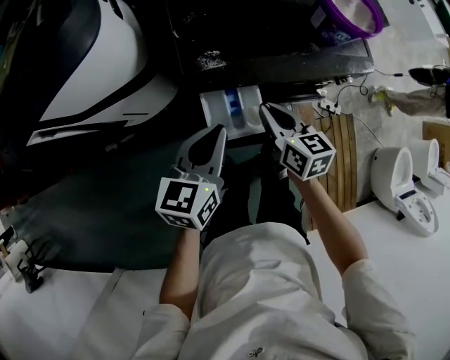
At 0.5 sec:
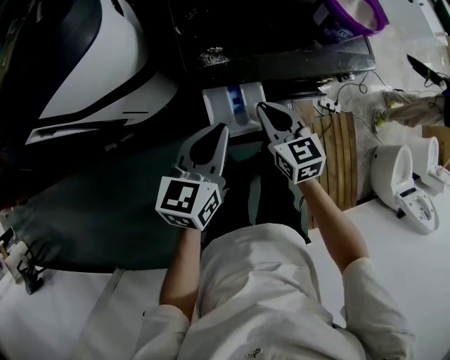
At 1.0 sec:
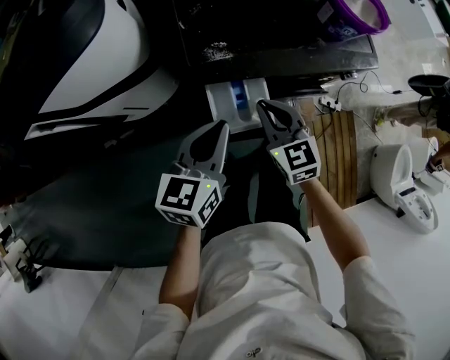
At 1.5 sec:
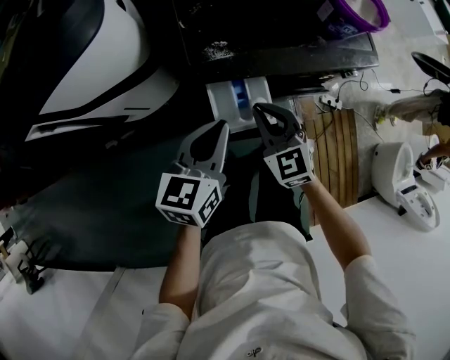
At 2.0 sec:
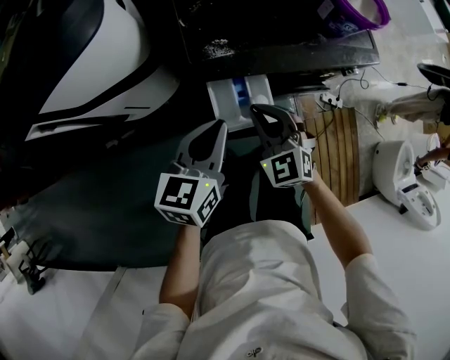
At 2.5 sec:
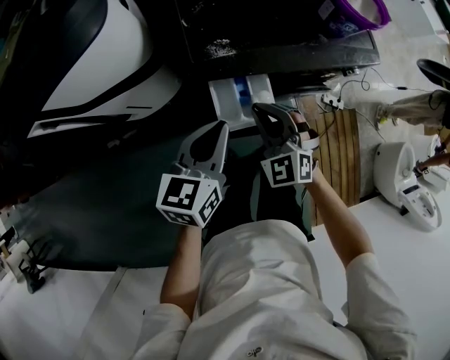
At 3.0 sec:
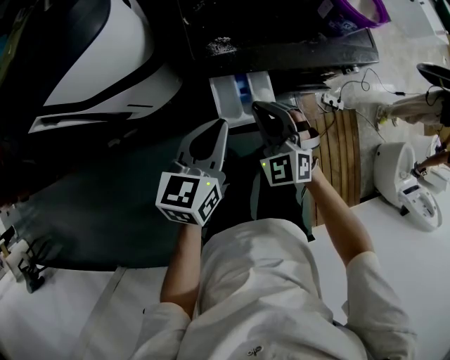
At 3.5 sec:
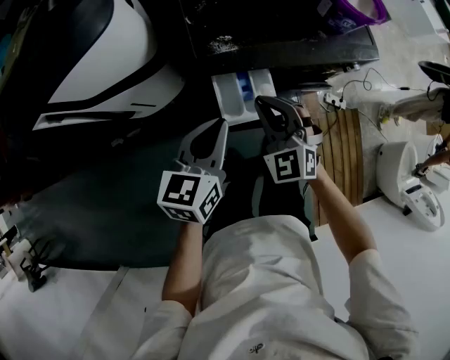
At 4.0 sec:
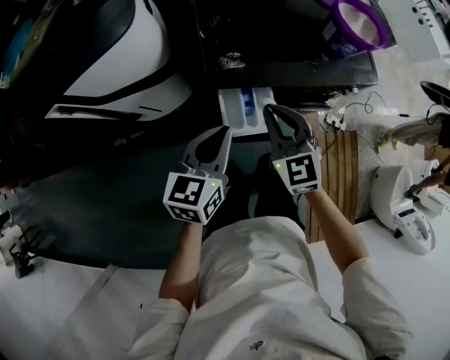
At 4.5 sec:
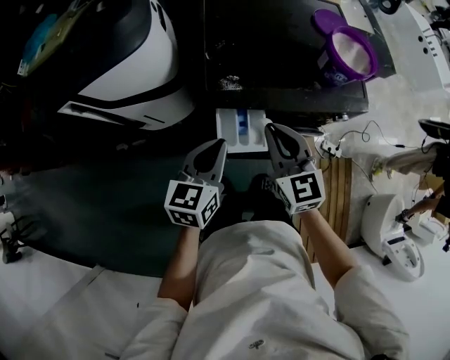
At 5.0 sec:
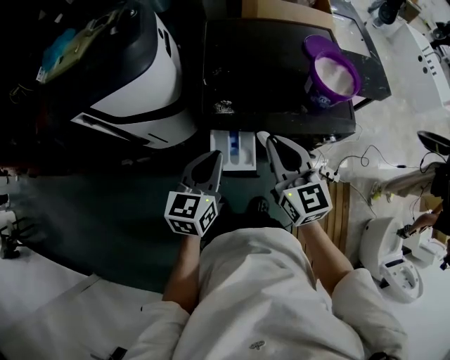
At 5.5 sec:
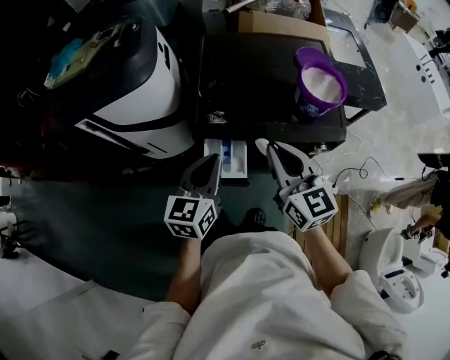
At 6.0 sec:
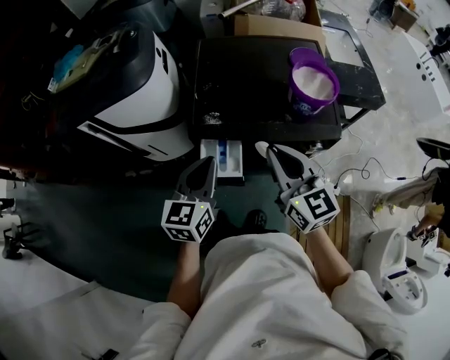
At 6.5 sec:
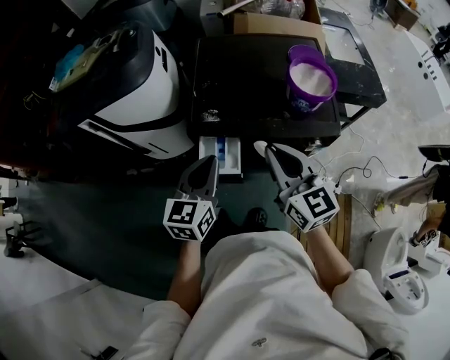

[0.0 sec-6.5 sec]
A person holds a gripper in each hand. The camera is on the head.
0.0 sec to 2.0 sec: The right gripper heads to the left, covering approximately 5 cm, and rolls counterclockwise, seen from behind, by some 60 degrees.
2.0 sec to 4.5 sec: The right gripper moves upward, about 10 cm, and rotates about 30 degrees.
4.5 sec to 6.5 sec: The right gripper shifts some 15 cm to the right and upward, while the left gripper is displaced upward and to the right by approximately 10 cm.

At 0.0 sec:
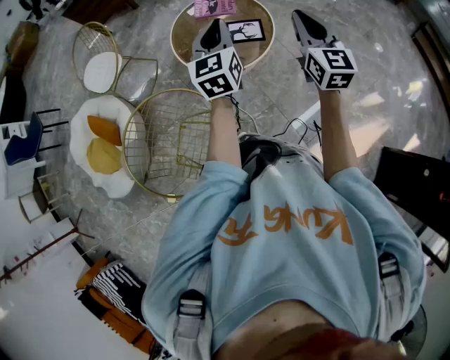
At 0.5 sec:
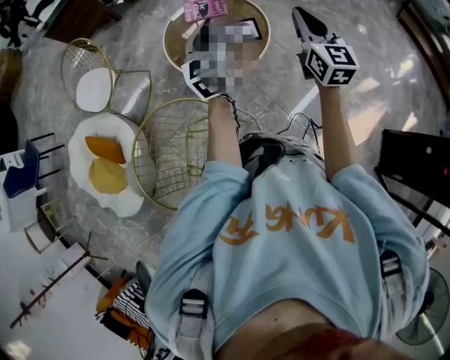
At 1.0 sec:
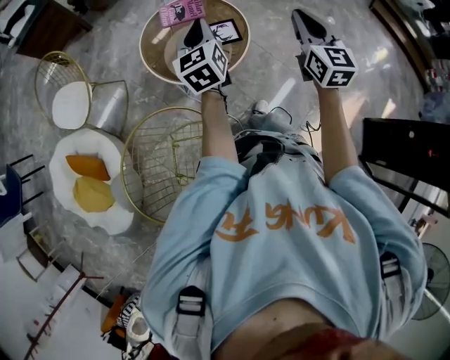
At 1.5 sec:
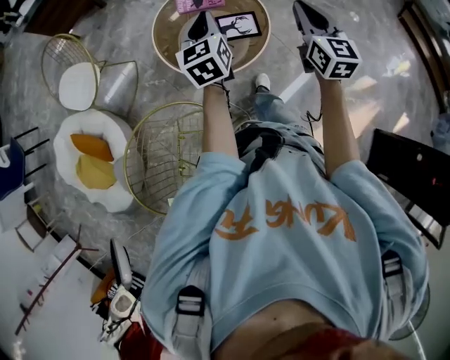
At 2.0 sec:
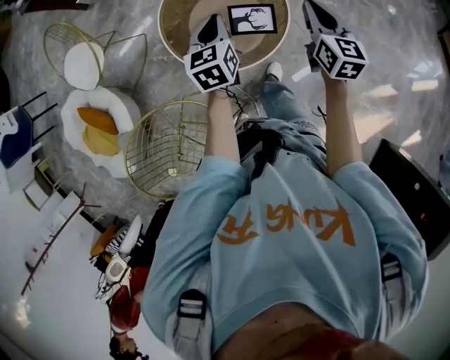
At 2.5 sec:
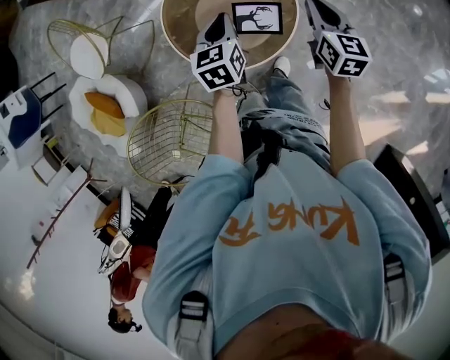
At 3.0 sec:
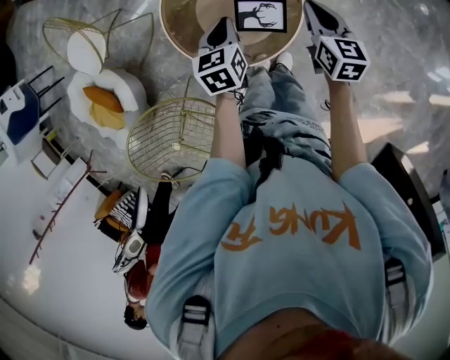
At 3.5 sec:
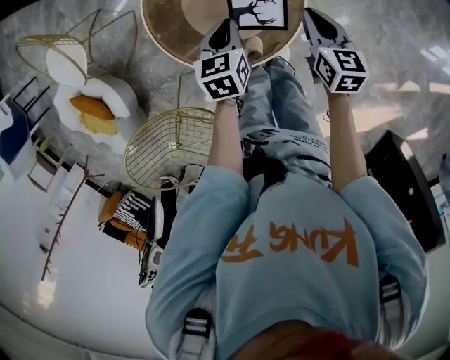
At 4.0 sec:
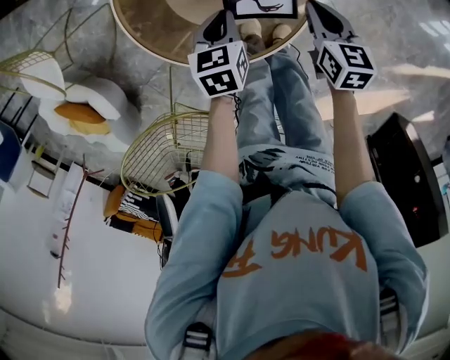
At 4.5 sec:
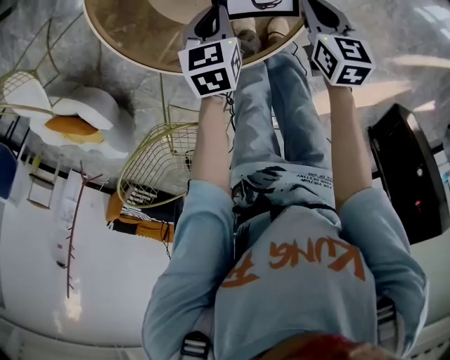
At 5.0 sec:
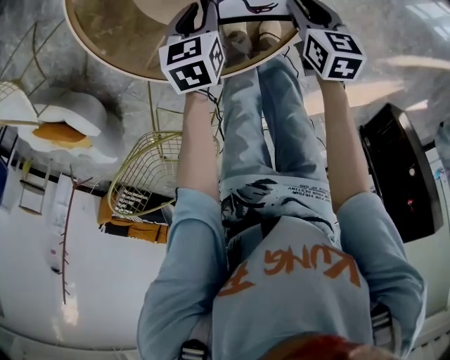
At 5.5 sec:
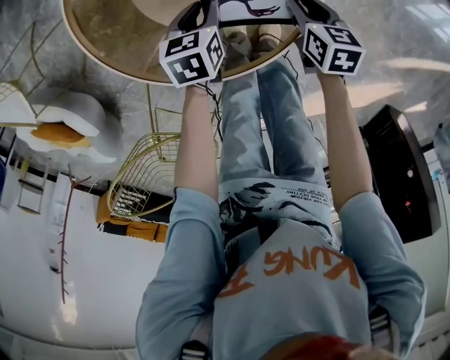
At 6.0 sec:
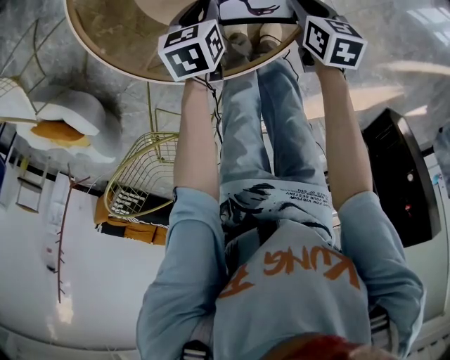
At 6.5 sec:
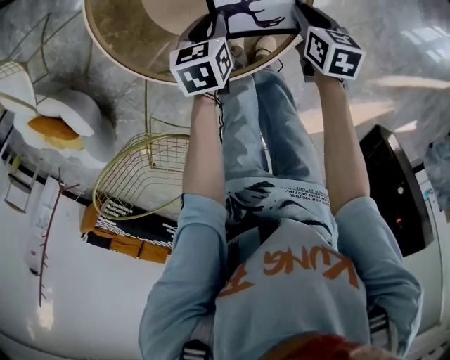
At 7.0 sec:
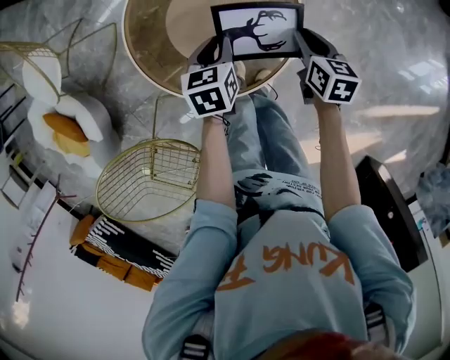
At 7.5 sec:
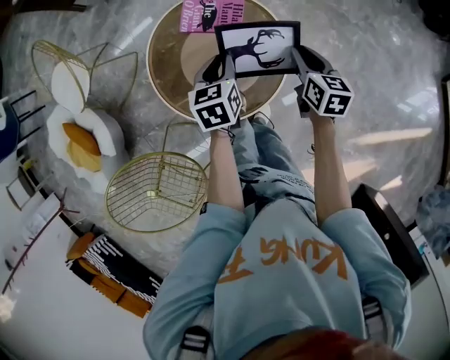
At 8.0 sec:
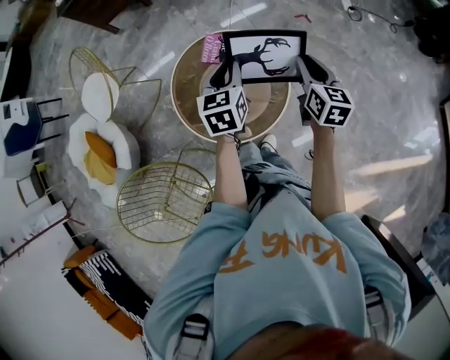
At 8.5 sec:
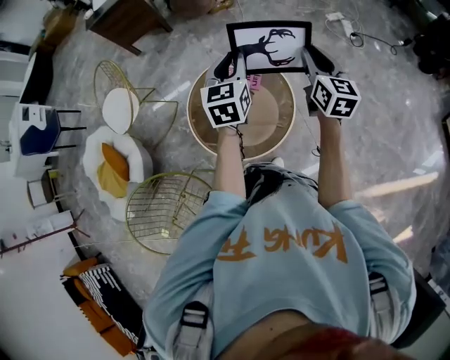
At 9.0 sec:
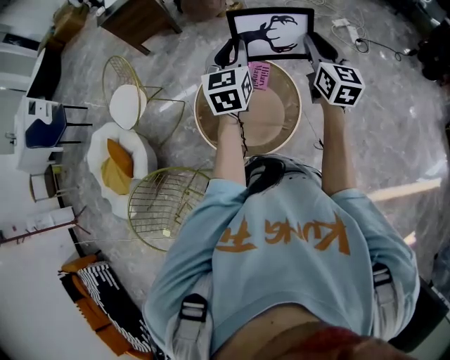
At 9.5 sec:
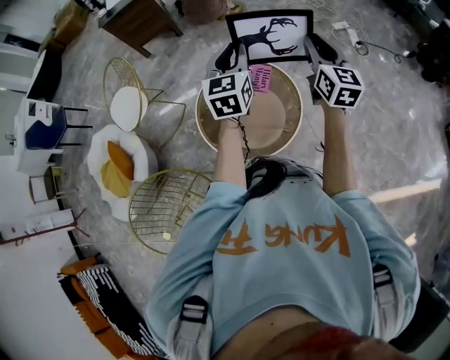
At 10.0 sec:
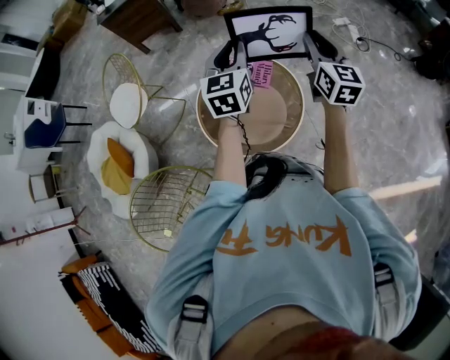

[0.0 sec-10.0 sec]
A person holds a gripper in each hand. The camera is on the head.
0.0 sec to 2.0 sec: The two grippers go about 20 cm forward and downward. The right gripper rotates some 20 degrees. The left gripper swivels some 20 degrees.
2.0 sec to 4.0 sec: The two grippers go roughly 25 cm downward. The left gripper turns by approximately 20 degrees. The right gripper rotates approximately 30 degrees.
4.0 sec to 6.0 sec: The grippers both shift downward by about 10 cm.
6.0 sec to 8.0 sec: Both grippers travel together upward, some 35 cm. The right gripper angles its fingers upward, by approximately 30 degrees. The left gripper changes its angle by about 40 degrees.
8.0 sec to 10.0 sec: The grippers both shift upward by approximately 15 cm. The left gripper swivels about 20 degrees, while the right gripper rotates about 20 degrees.

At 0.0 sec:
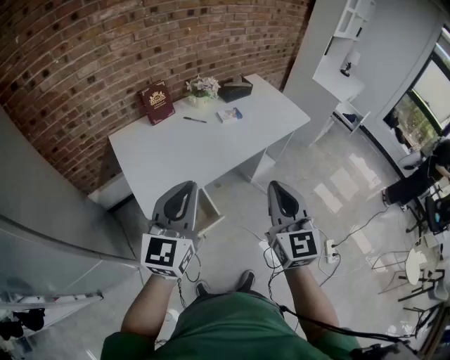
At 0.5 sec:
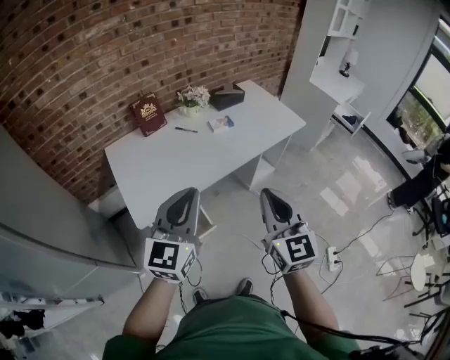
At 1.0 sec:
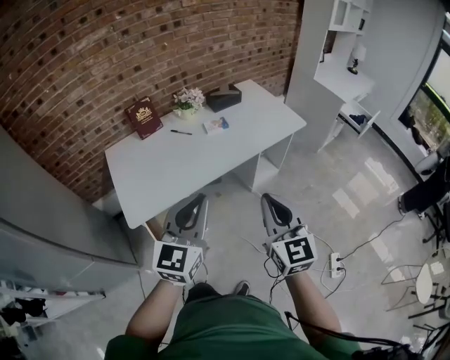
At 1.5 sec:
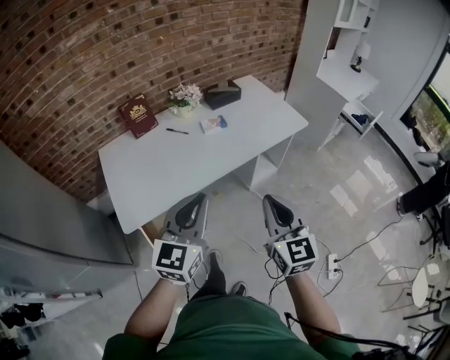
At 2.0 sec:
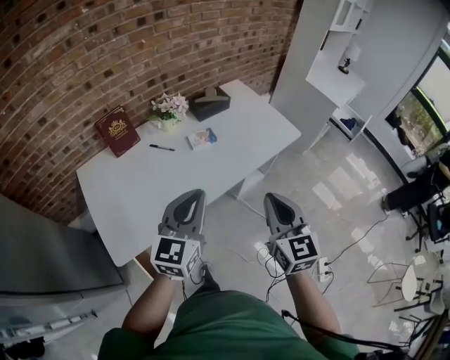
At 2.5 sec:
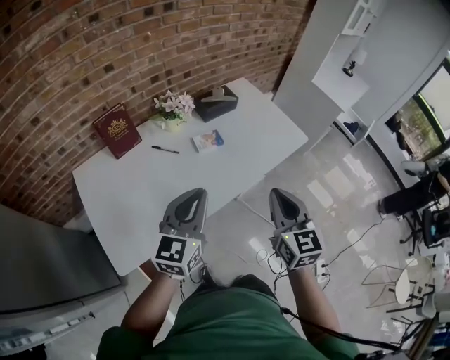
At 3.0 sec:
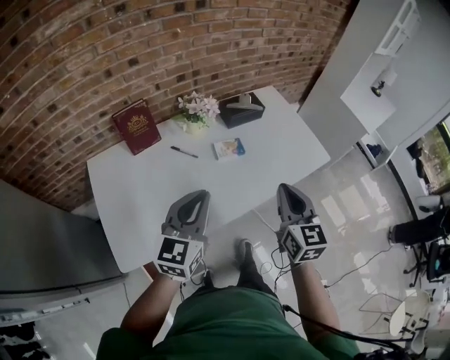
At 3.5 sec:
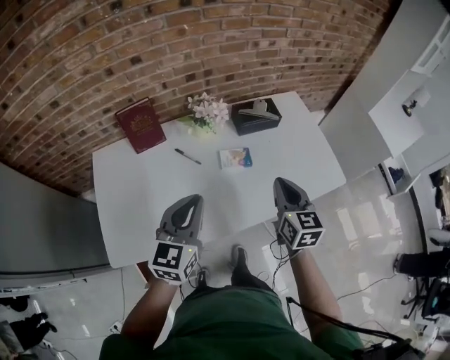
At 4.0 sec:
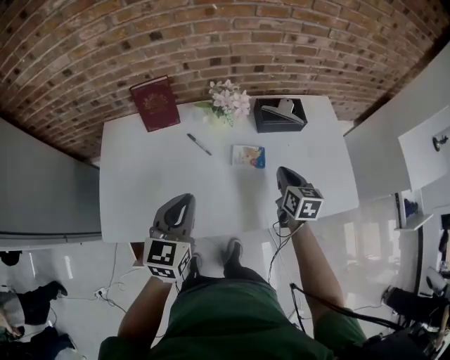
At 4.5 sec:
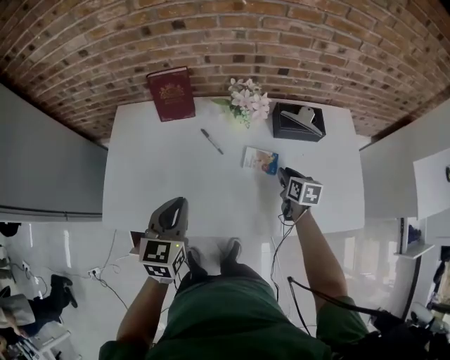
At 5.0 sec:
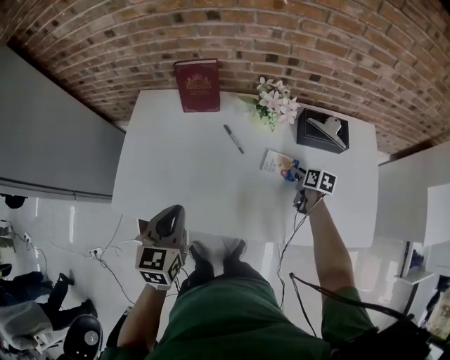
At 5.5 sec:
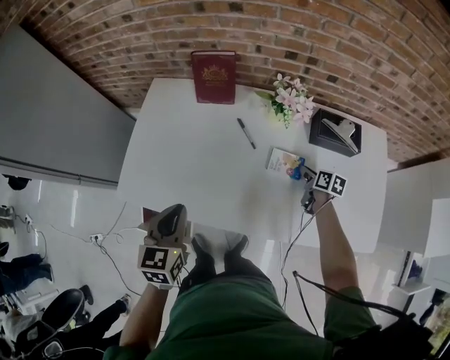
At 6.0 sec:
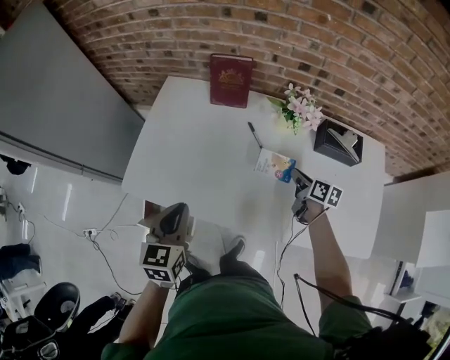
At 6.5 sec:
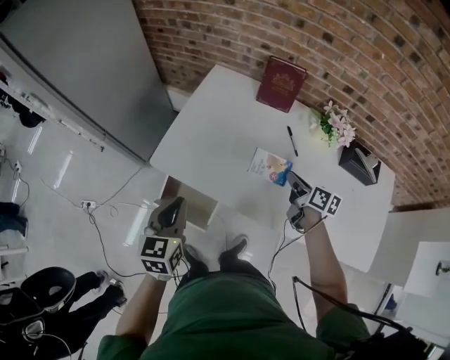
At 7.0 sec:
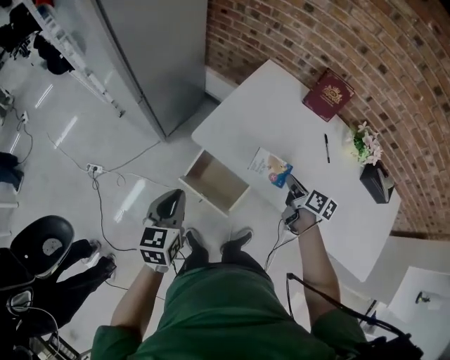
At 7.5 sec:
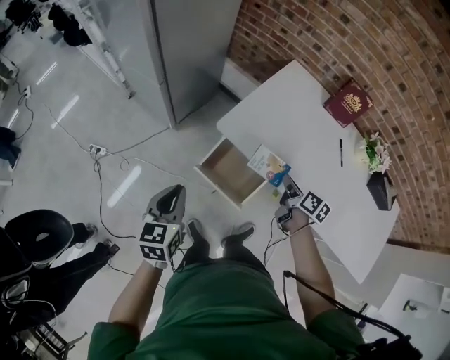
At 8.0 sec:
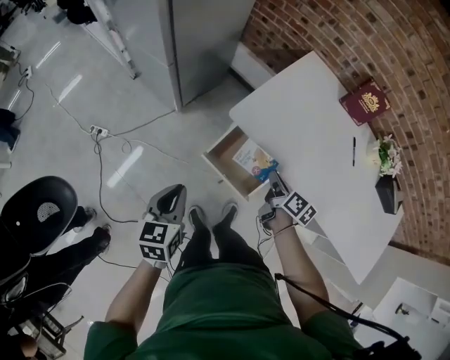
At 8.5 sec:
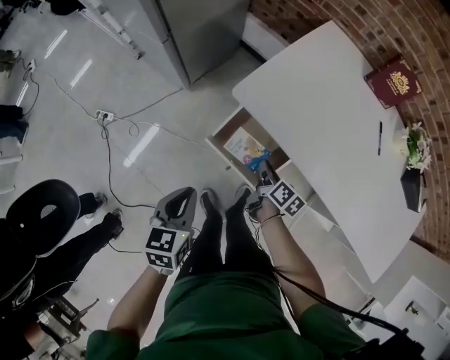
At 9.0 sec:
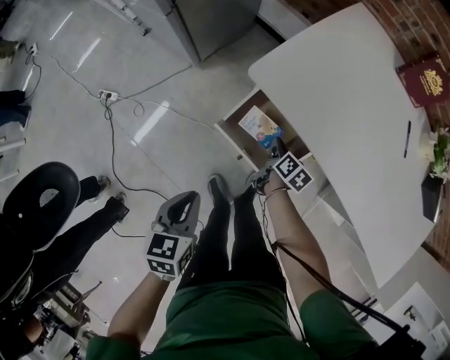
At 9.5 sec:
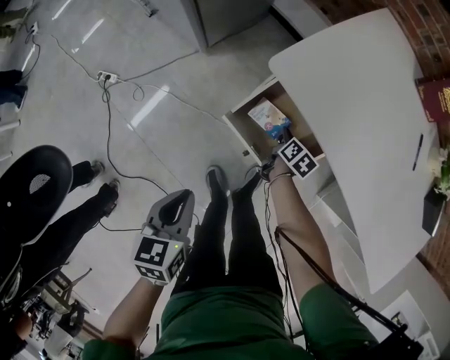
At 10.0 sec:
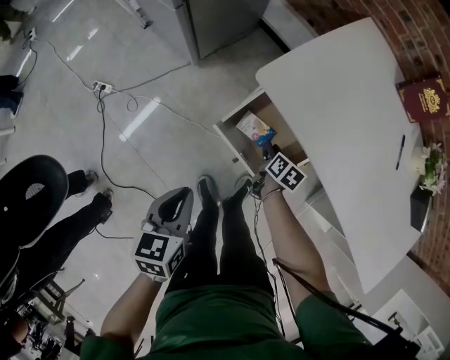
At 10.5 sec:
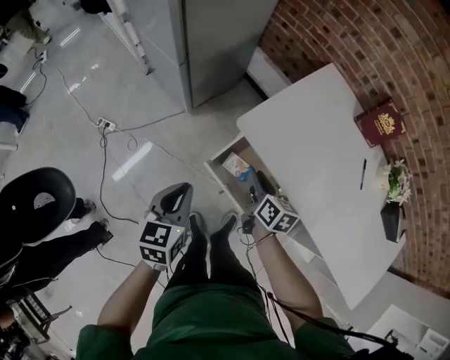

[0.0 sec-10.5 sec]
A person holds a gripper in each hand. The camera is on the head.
0.0 sec to 2.0 sec: Both grippers move forward and to the right, about 30 cm.
2.0 sec to 4.0 sec: The left gripper changes place by some 20 cm, and turns by some 40 degrees, while the right gripper changes place by roughly 50 cm, and rotates roughly 40 degrees.
4.0 sec to 6.5 sec: The right gripper reaches approximately 15 cm downward, then returns, rotates about 40 degrees, and opens, then closes again. Meanwhile the left gripper shifts by roughly 30 cm, and changes its angle by some 40 degrees.
6.5 sec to 8.5 sec: The left gripper goes approximately 25 cm to the left and downward, and changes its angle by roughly 20 degrees. The right gripper heads to the left and downward, covering approximately 40 cm.
8.5 sec to 10.5 sec: The left gripper shifts by about 5 cm, while the right gripper travels upward and to the left by approximately 10 cm, and changes its angle by some 30 degrees.
